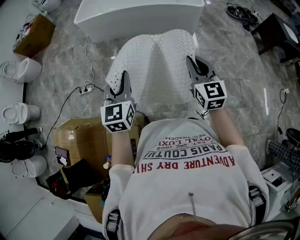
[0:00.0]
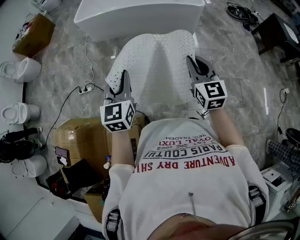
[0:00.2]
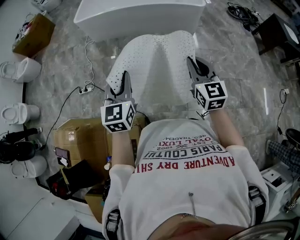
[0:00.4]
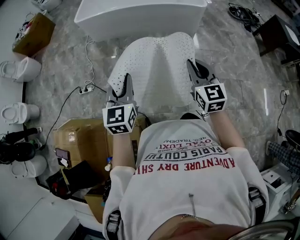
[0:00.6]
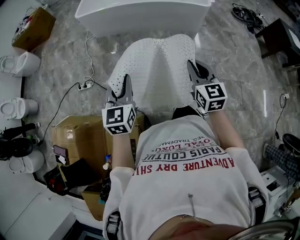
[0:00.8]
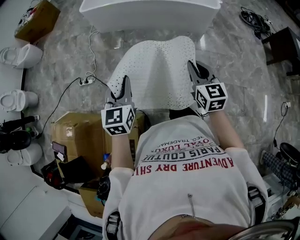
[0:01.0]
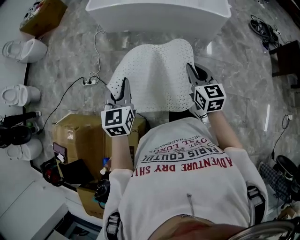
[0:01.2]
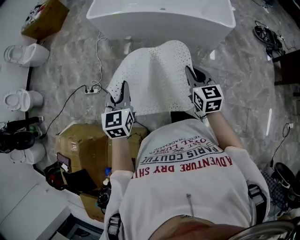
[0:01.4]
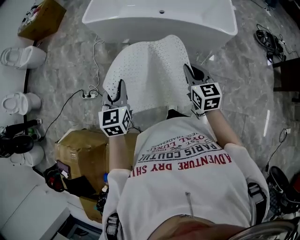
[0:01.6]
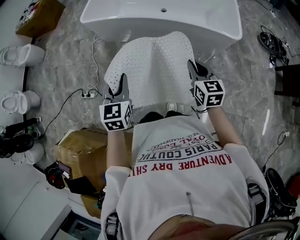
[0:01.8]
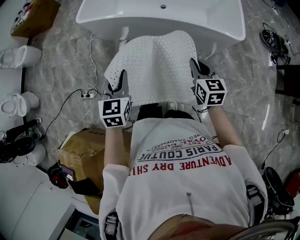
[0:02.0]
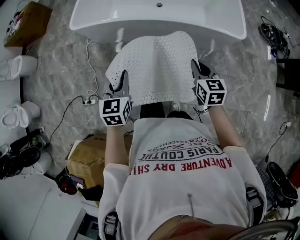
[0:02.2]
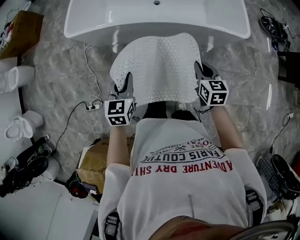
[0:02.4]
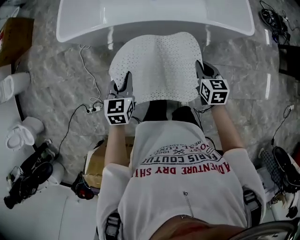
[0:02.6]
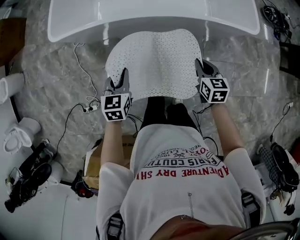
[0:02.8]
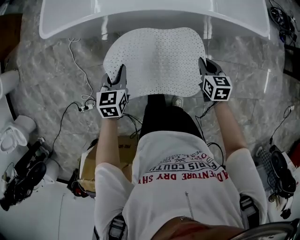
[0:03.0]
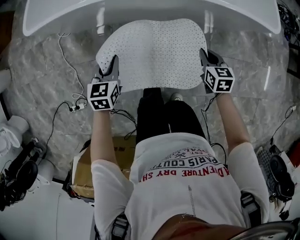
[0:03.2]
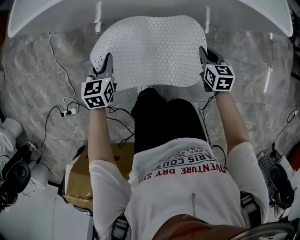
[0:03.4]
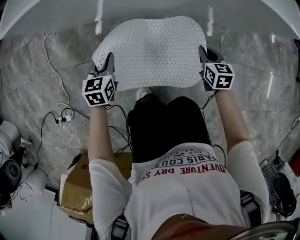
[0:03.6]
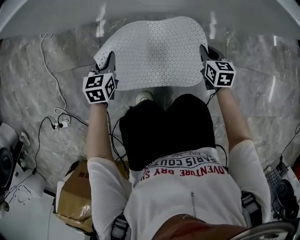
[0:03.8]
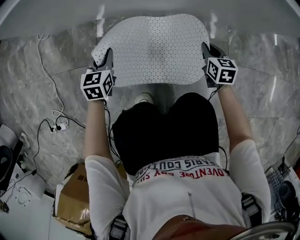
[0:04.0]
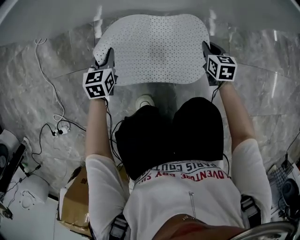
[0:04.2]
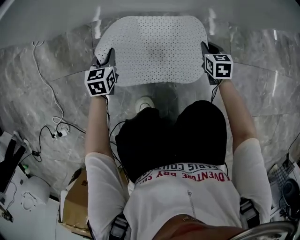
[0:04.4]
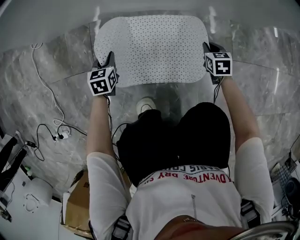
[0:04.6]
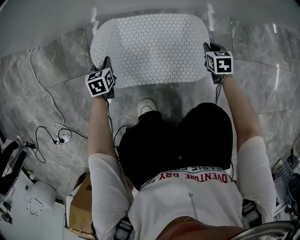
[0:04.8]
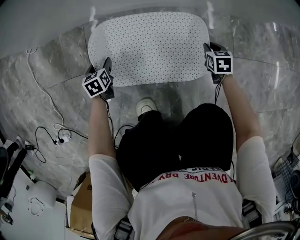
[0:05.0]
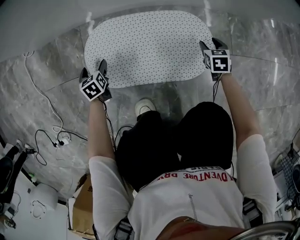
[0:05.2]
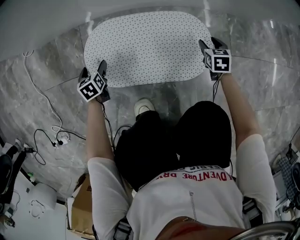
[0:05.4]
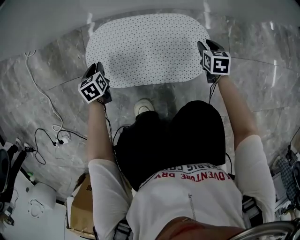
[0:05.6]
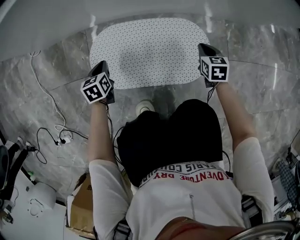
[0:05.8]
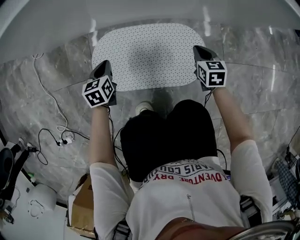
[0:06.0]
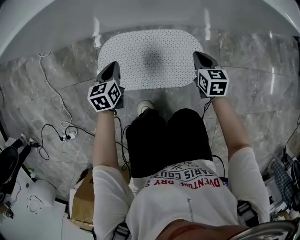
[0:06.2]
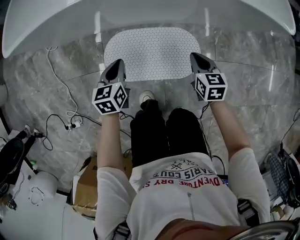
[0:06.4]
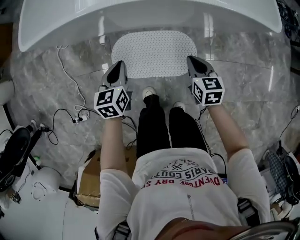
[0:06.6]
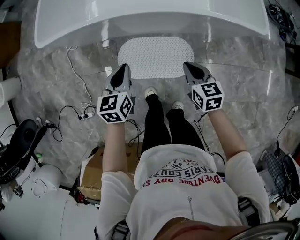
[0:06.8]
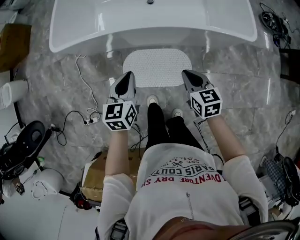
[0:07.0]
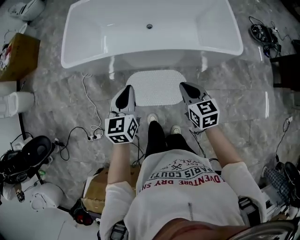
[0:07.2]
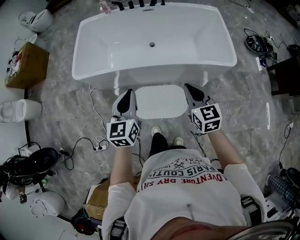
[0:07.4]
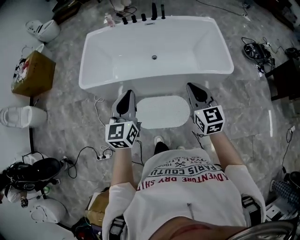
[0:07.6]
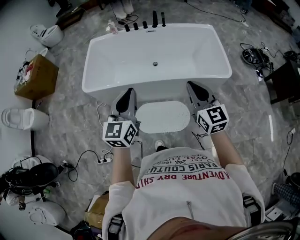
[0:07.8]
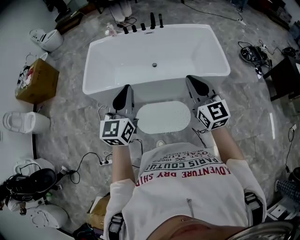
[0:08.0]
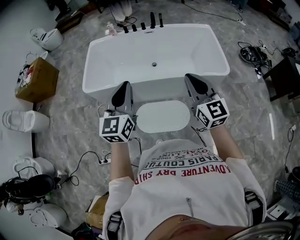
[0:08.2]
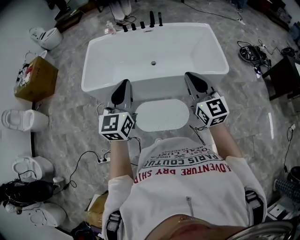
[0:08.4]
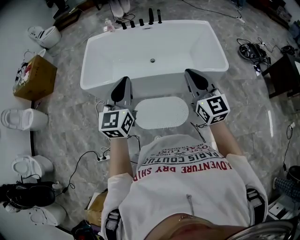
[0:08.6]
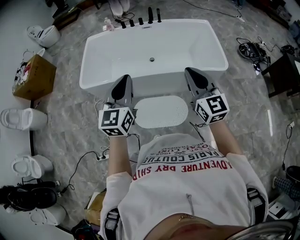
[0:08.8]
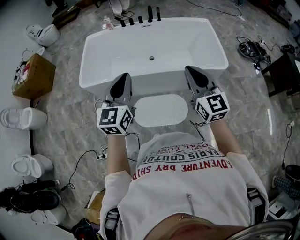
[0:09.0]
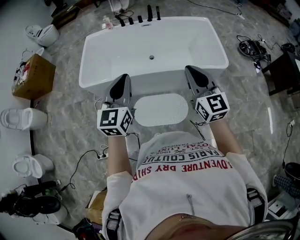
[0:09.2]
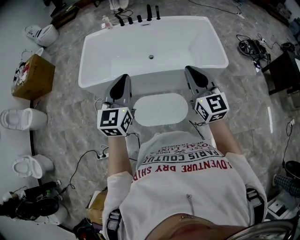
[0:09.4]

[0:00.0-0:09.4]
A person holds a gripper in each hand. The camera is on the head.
0:00.0 to 0:01.6: Both grippers travel together forward, some 35 cm.
0:01.6 to 0:03.2: Both grippers travel together downward and forward, approximately 50 cm. The right gripper swivels approximately 30 degrees. The left gripper changes its angle by approximately 30 degrees.
0:03.2 to 0:04.8: Both grippers travel together downward, about 40 cm.
0:04.8 to 0:06.2: The grippers both shift upward by approximately 20 cm. The left gripper opens and closes again. Meanwhile the right gripper opens and closes again.
0:06.2 to 0:07.8: Both grippers move upward, some 80 cm. The left gripper points its fingers approximately 40 degrees further upward; the right gripper angles its fingers upward, by about 40 degrees.
0:07.8 to 0:09.4: There are only small adjustments of the grippers.

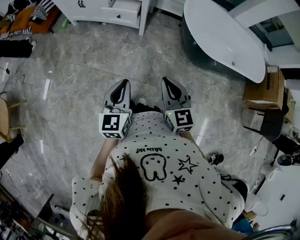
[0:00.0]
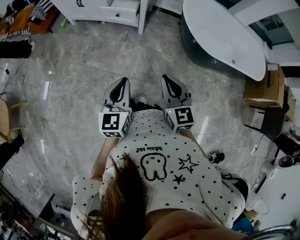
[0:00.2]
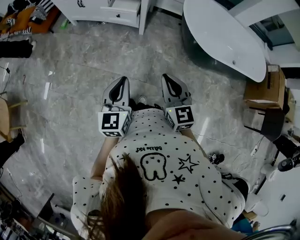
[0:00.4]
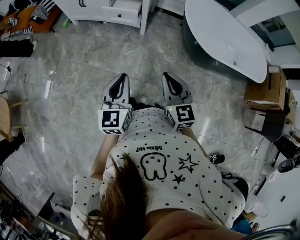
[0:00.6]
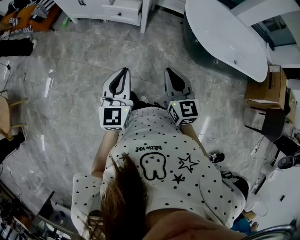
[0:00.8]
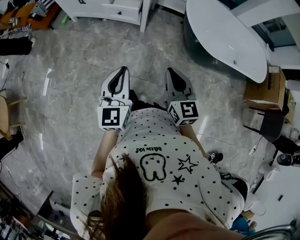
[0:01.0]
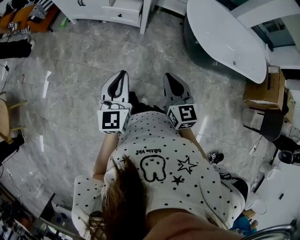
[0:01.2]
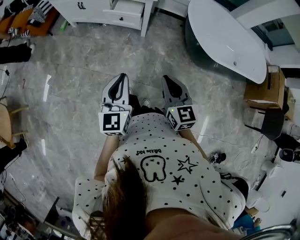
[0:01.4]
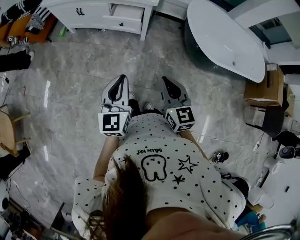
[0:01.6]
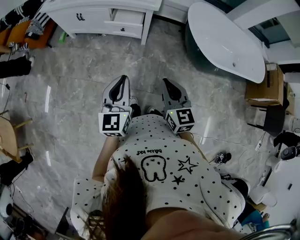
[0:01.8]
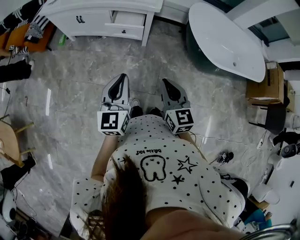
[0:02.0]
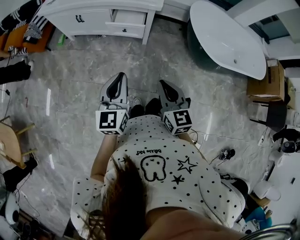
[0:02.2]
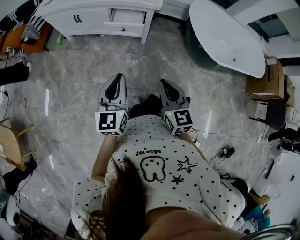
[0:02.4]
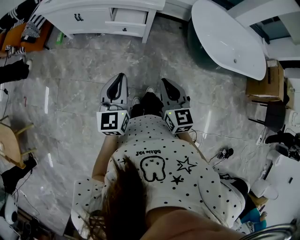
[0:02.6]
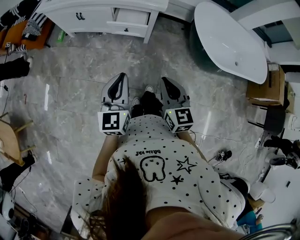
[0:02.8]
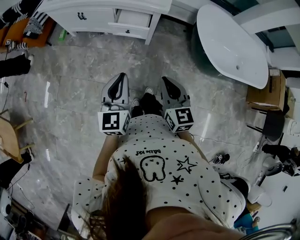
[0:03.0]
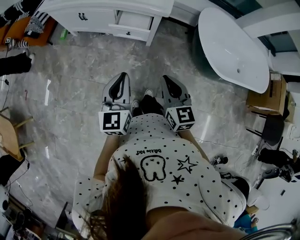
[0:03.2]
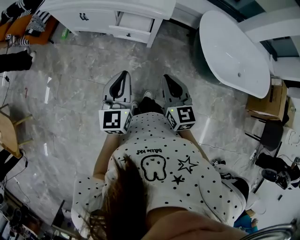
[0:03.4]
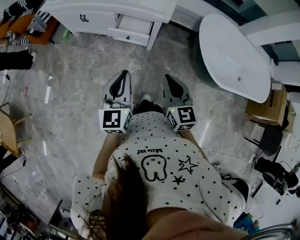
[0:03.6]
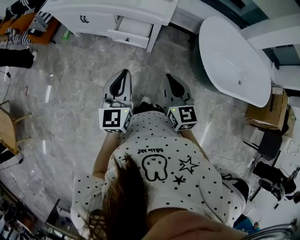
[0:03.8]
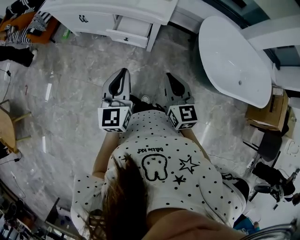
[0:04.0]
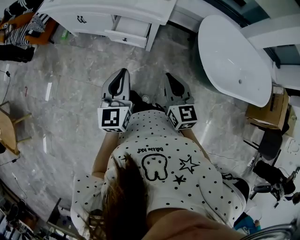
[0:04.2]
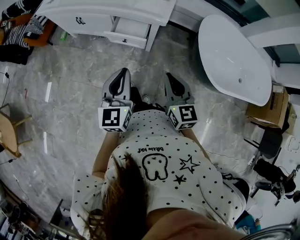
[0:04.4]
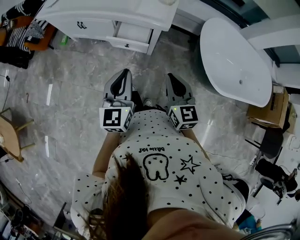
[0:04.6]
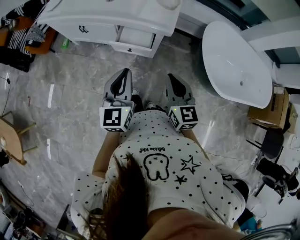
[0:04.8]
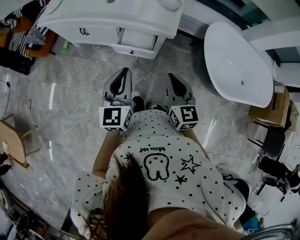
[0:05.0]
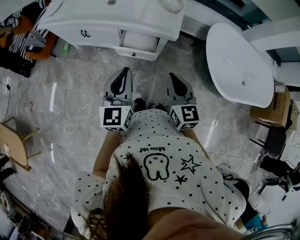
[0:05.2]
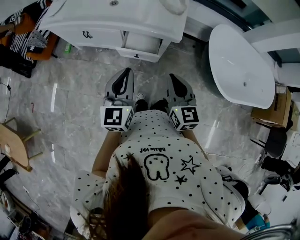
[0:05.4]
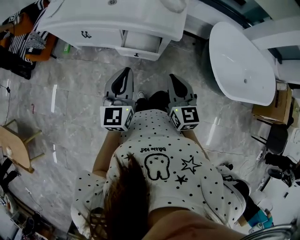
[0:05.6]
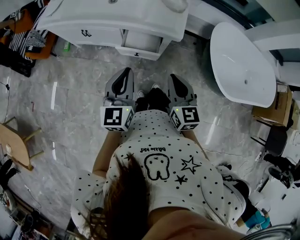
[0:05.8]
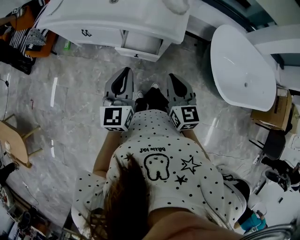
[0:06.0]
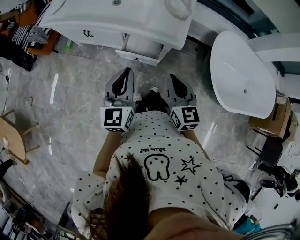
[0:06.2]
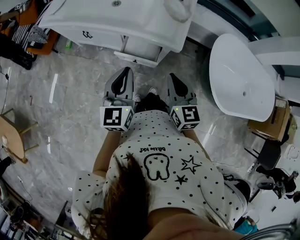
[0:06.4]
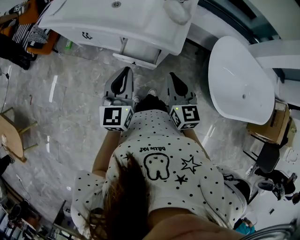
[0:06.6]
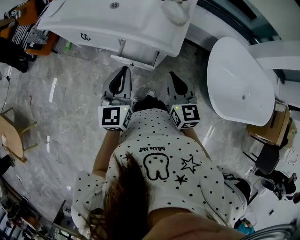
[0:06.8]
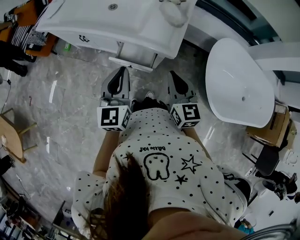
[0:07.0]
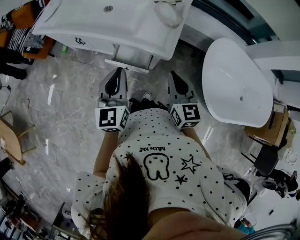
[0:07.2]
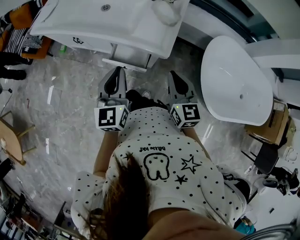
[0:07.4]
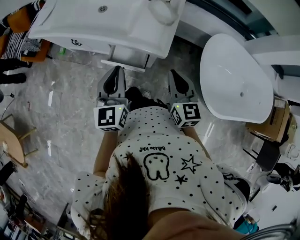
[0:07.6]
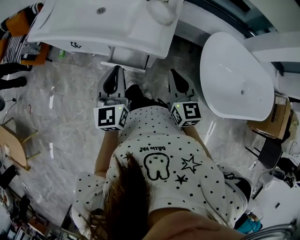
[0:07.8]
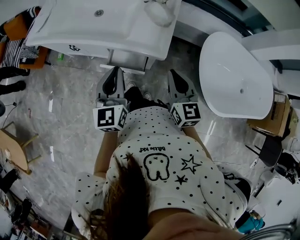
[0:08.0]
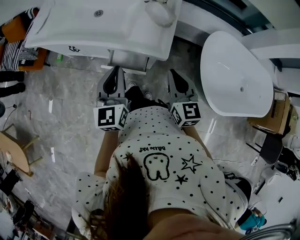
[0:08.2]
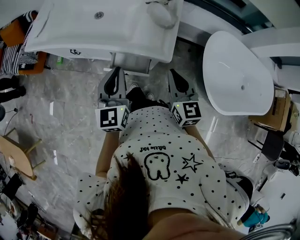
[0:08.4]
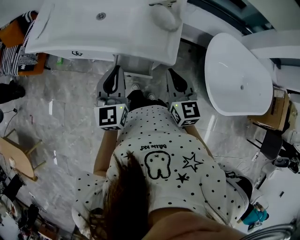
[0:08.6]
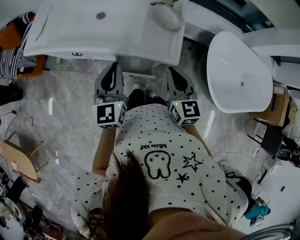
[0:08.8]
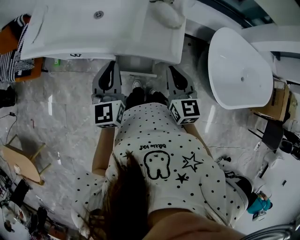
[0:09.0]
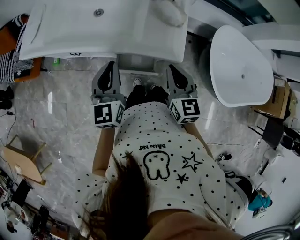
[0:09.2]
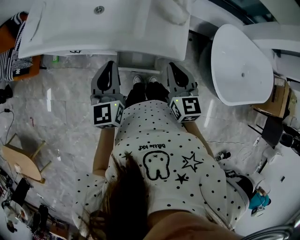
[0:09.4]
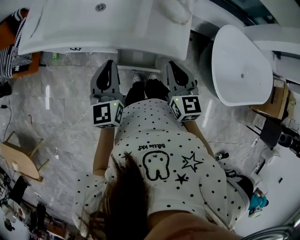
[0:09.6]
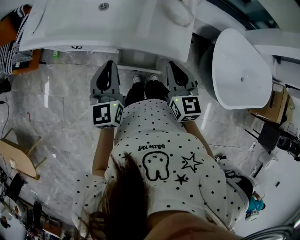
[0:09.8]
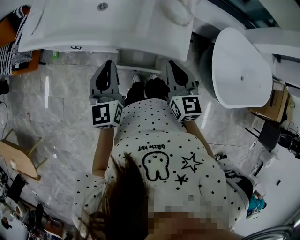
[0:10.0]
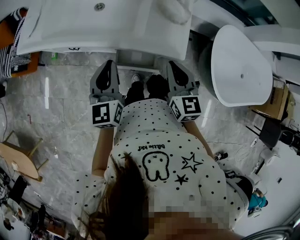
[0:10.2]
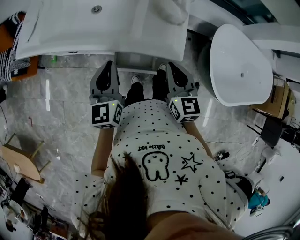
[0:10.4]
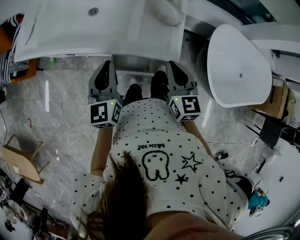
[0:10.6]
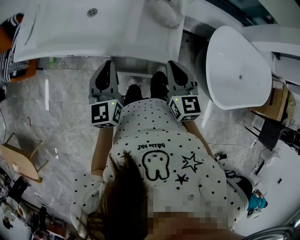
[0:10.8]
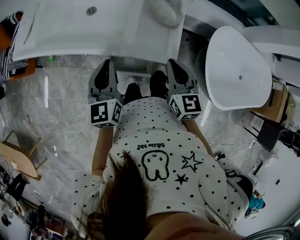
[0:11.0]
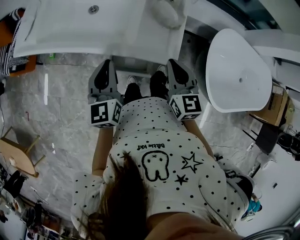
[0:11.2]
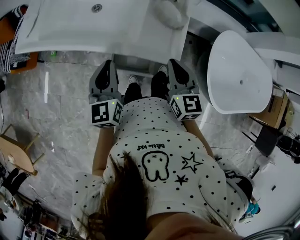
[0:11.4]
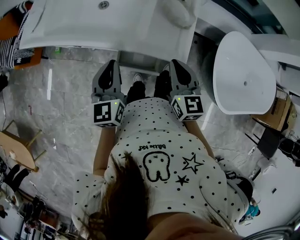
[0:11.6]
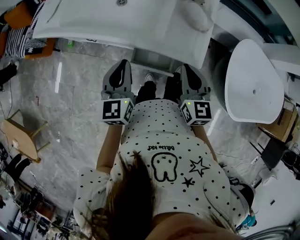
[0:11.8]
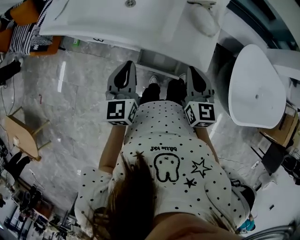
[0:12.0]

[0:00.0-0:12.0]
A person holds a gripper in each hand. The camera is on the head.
0:00.0 to 0:01.6: Both grippers move forward and to the left, some 10 cm.
0:01.6 to 0:03.0: The two grippers go roughly 15 cm forward and to the left.
0:03.0 to 0:04.4: The grippers both shift forward and to the right by about 15 cm.
0:04.4 to 0:06.0: The two grippers go roughly 15 cm forward and to the left.
0:06.0 to 0:07.6: The left gripper shifts roughly 10 cm forward and to the right. Meanwhile the right gripper goes approximately 15 cm to the right and forward.
0:07.6 to 0:09.0: The left gripper moves forward and to the left, some 15 cm. The right gripper goes some 10 cm to the left and forward.
0:09.0 to 0:10.4: The grippers move only a little.
0:10.4 to 0:12.0: The grippers move only a little.

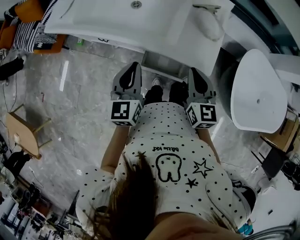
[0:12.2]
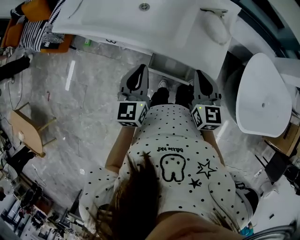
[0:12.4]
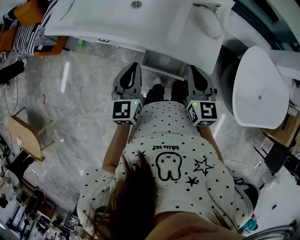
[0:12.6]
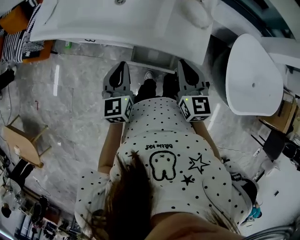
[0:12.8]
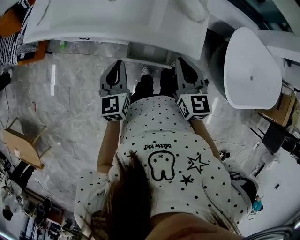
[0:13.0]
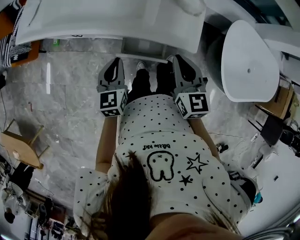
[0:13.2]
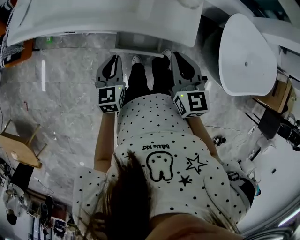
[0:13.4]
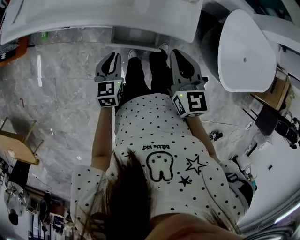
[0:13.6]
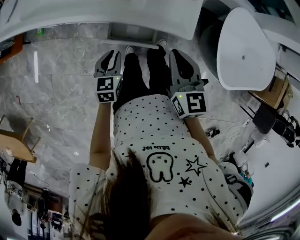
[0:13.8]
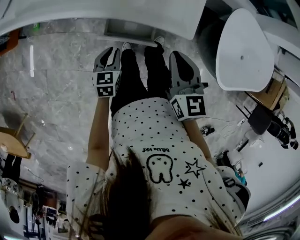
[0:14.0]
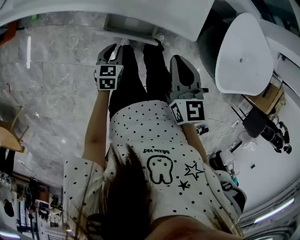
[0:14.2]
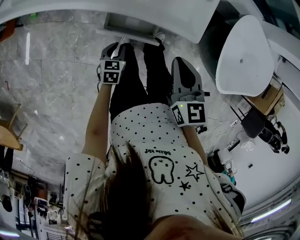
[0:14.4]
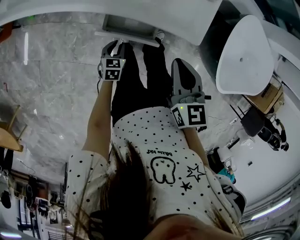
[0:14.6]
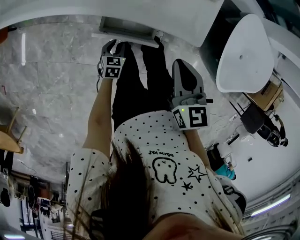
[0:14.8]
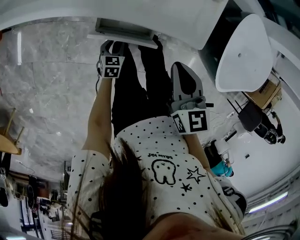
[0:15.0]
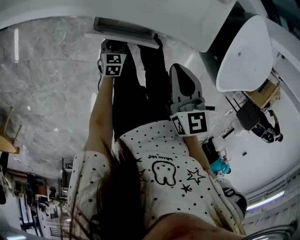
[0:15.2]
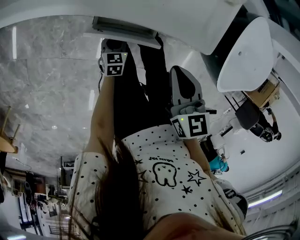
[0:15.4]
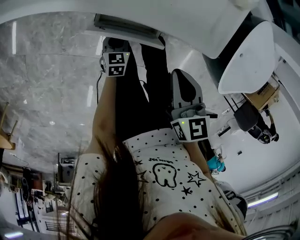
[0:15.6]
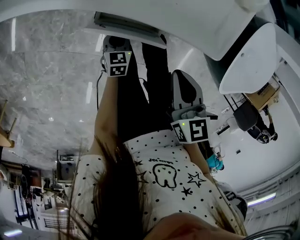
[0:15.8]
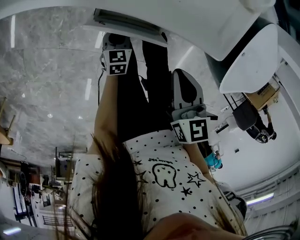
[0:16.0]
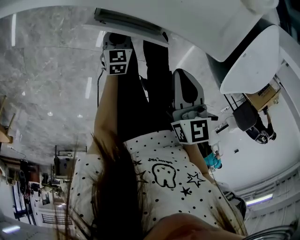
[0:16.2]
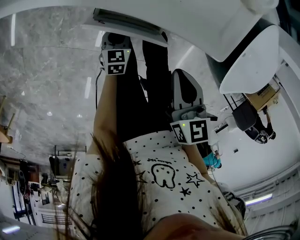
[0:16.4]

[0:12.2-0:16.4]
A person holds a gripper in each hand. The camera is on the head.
0:12.2 to 0:13.6: The left gripper travels downward by roughly 20 cm, and rotates approximately 20 degrees.
0:13.6 to 0:15.0: The left gripper goes approximately 25 cm downward, and opens its fingers. Meanwhile the right gripper moves downward, about 10 cm.
0:15.0 to 0:16.4: The right gripper moves downward, about 5 cm.
